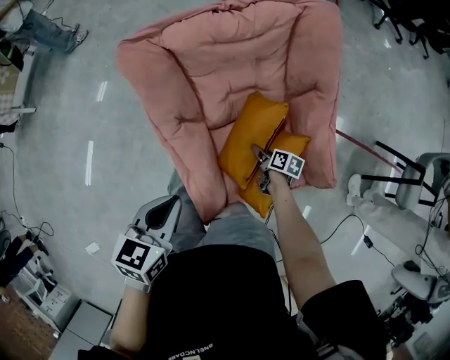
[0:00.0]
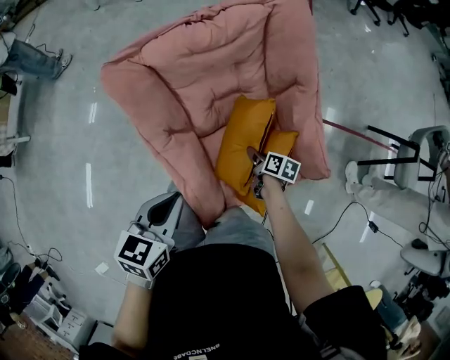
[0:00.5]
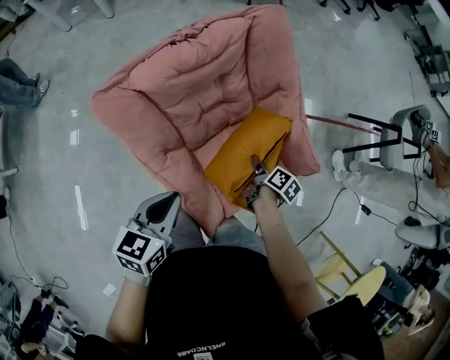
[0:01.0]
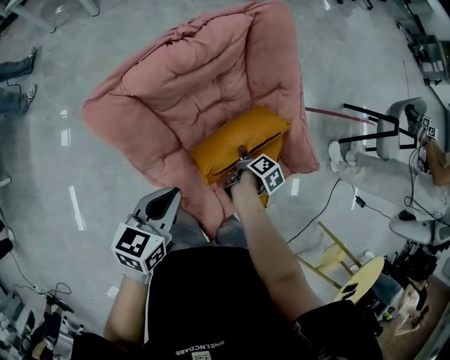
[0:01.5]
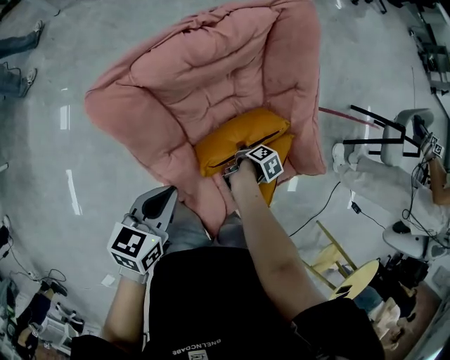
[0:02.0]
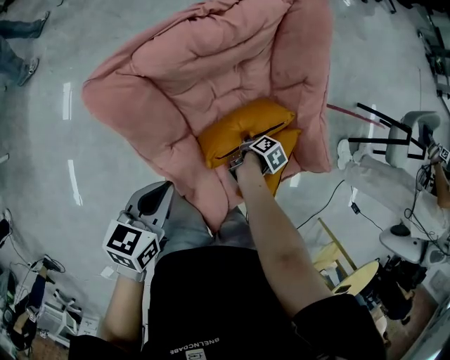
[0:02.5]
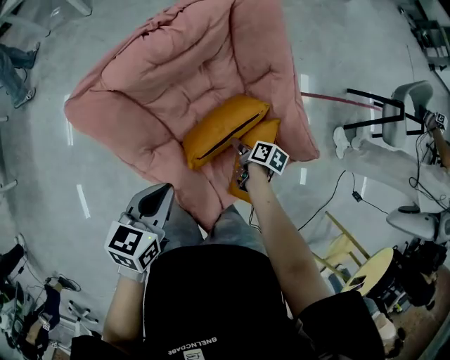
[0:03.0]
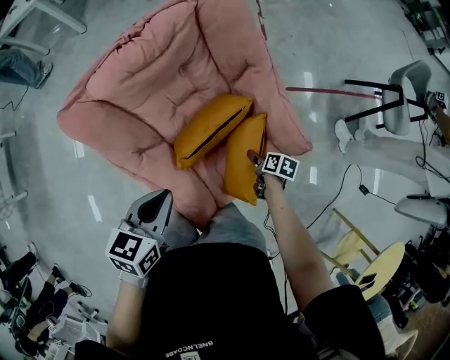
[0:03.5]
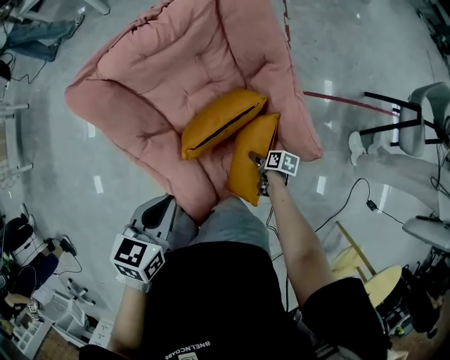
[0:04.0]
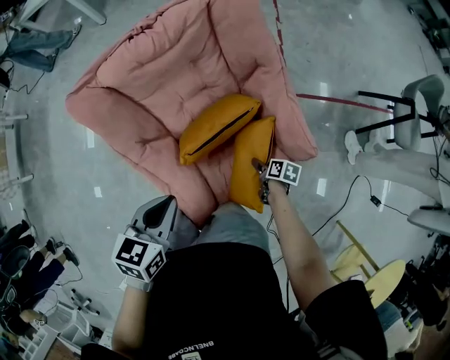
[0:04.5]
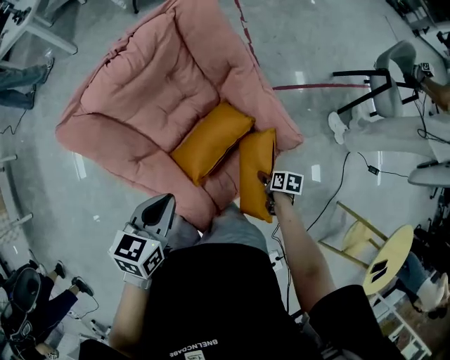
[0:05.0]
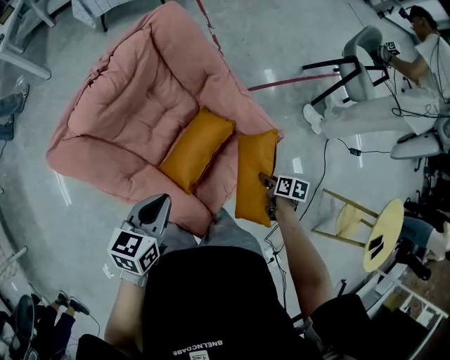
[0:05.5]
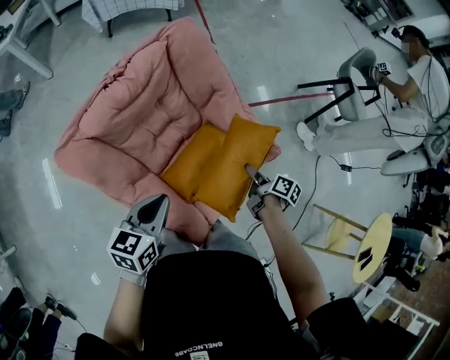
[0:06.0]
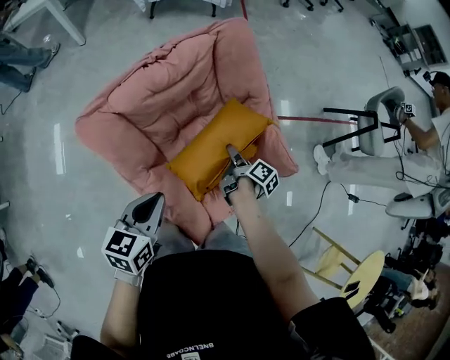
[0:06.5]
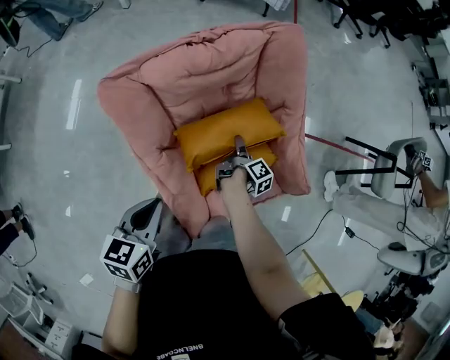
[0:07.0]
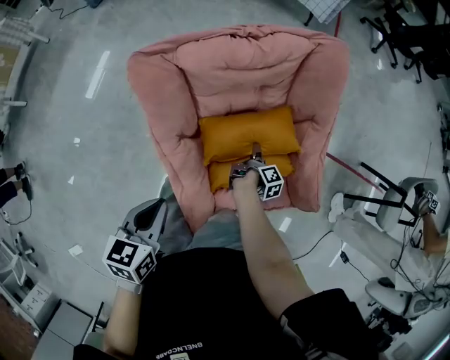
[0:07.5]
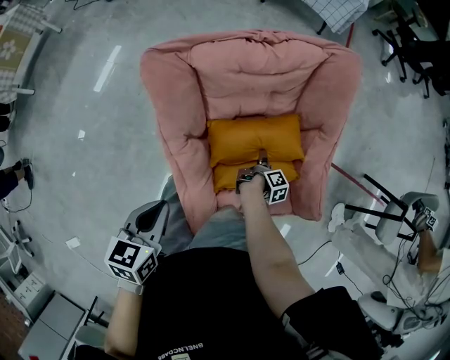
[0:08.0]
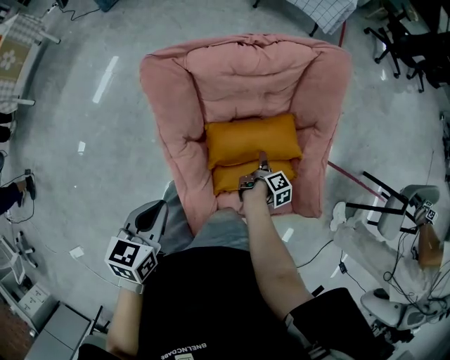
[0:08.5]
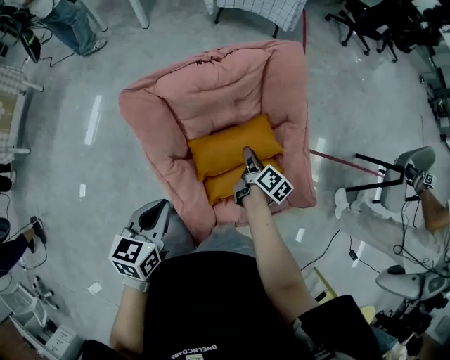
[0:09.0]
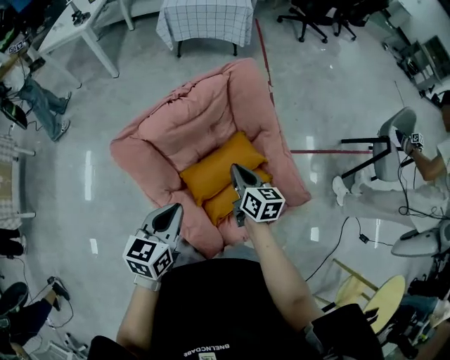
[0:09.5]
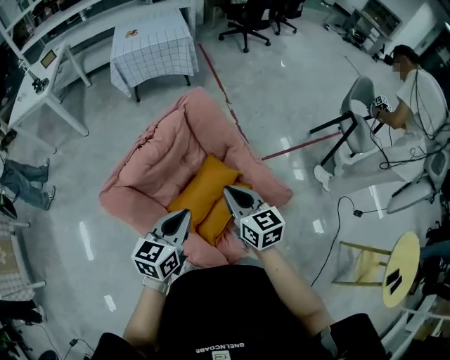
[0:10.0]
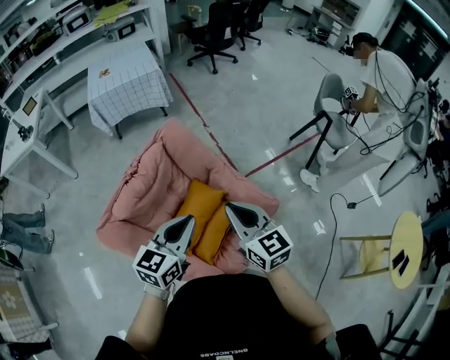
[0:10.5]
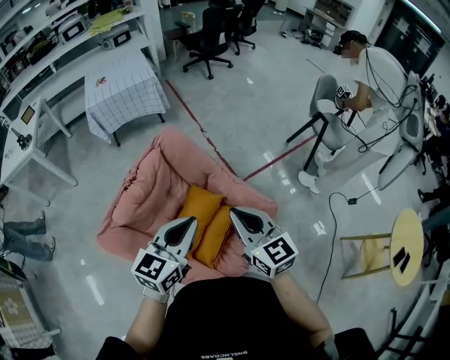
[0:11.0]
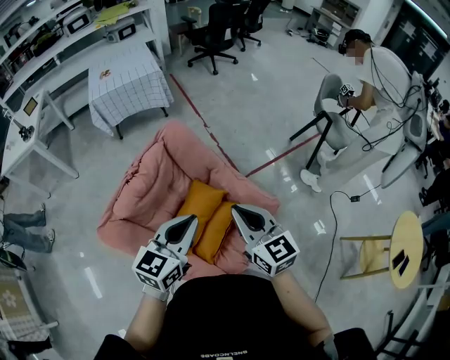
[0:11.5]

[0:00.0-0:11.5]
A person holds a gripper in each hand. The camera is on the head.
0:00.0 to 0:02.0: The right gripper travels upward and back again, some 10 cm each way, twists roughly 50 degrees clockwise, seen from behind, and closes its fingers, while the left gripper ends up about 15 cm from where it was.
0:02.0 to 0:04.0: The right gripper ends up roughly 20 cm from where it was, changes its angle by approximately 40 degrees, and opens up; the left gripper ends up approximately 15 cm from where it was.
0:04.0 to 0:06.0: The left gripper changes place by some 10 cm, and turns by approximately 20 degrees, while the right gripper shifts some 20 cm upward, rotates roughly 40 degrees, and closes its fingers.
0:06.0 to 0:07.5: The right gripper travels to the left, downward and forward by some 25 cm. The left gripper moves backward and to the left, some 15 cm, and swivels roughly 40 degrees.
0:07.5 to 0:09.5: The left gripper is displaced forward and upward by about 10 cm, and rotates approximately 30 degrees. Meanwhile the right gripper moves upward, roughly 25 cm, rotates around the line of its fingers by about 60 degrees, counterclockwise from behind, and closes.
0:09.5 to 0:11.5: The right gripper moves upward and to the right, some 25 cm, and swivels some 30 degrees, while the left gripper heads upward, to the right and forward, covering approximately 20 cm, and changes its angle by approximately 40 degrees.

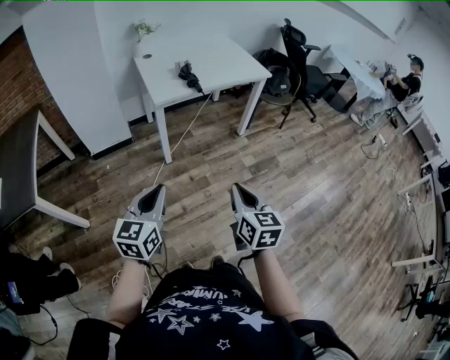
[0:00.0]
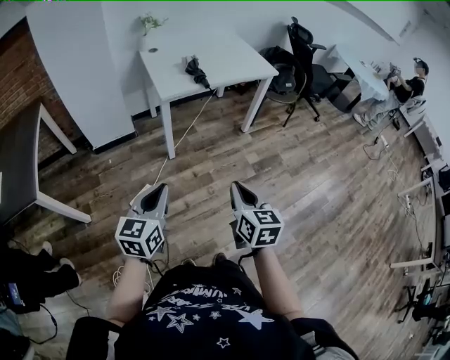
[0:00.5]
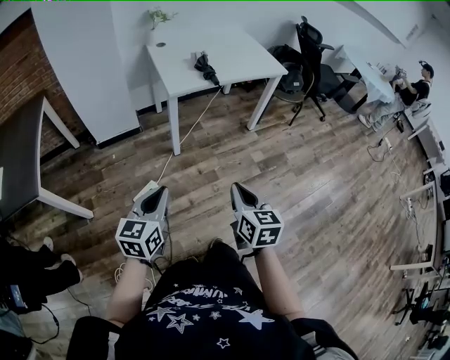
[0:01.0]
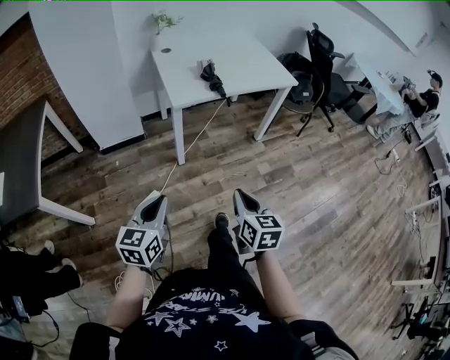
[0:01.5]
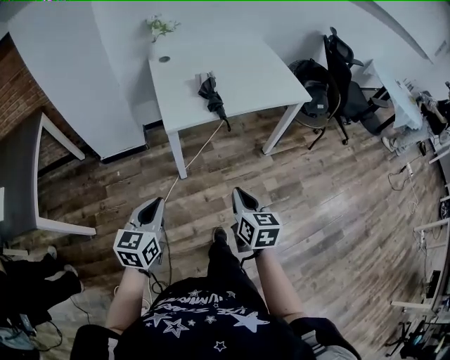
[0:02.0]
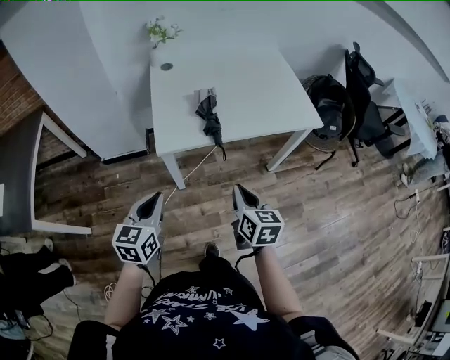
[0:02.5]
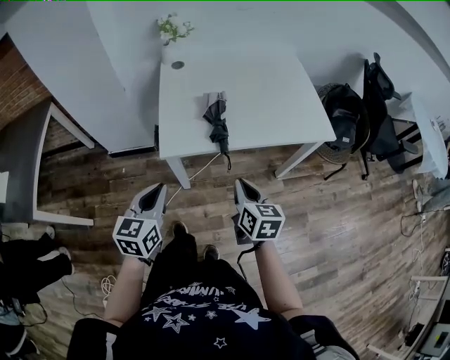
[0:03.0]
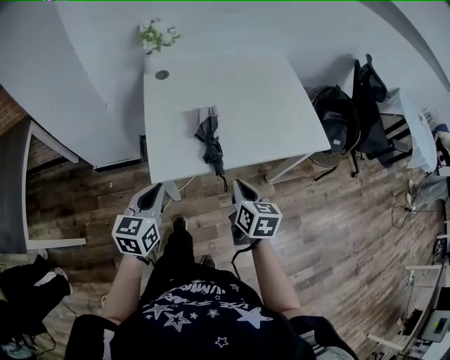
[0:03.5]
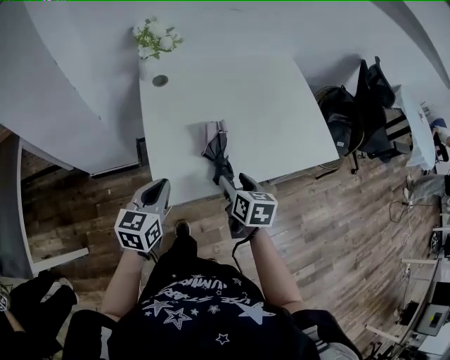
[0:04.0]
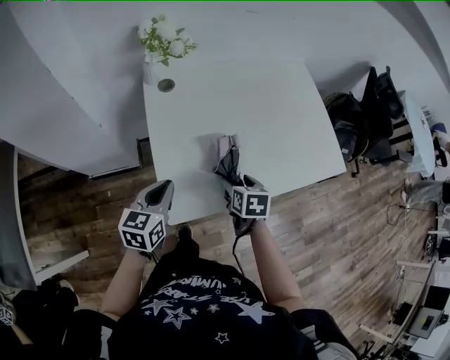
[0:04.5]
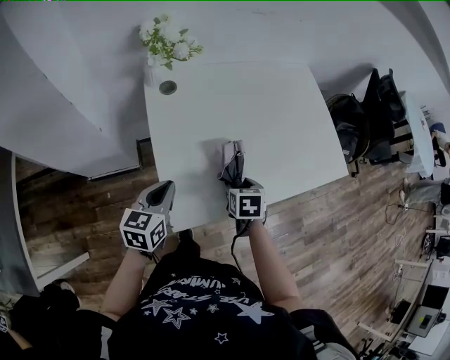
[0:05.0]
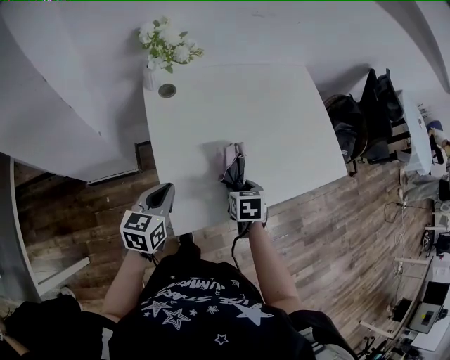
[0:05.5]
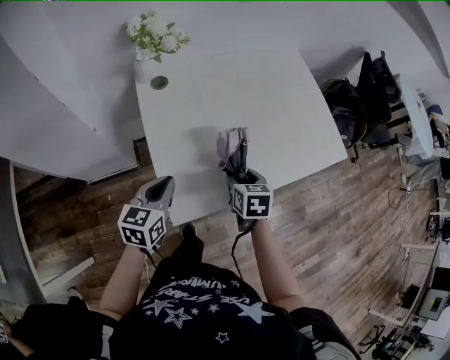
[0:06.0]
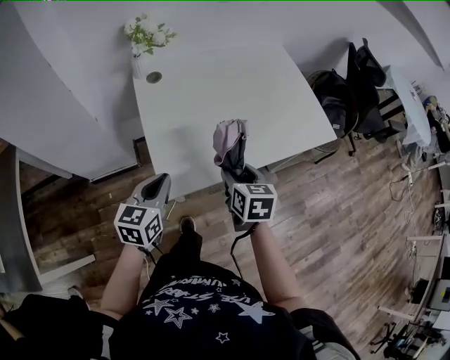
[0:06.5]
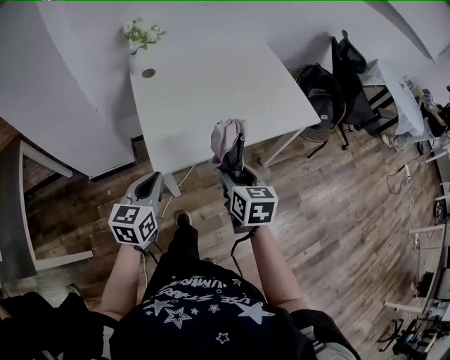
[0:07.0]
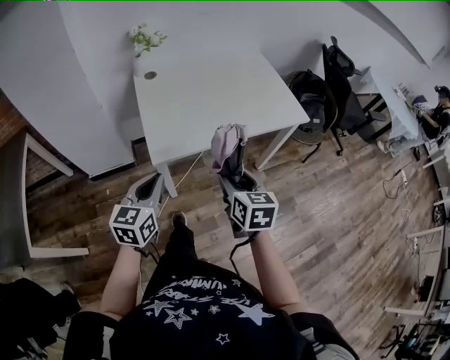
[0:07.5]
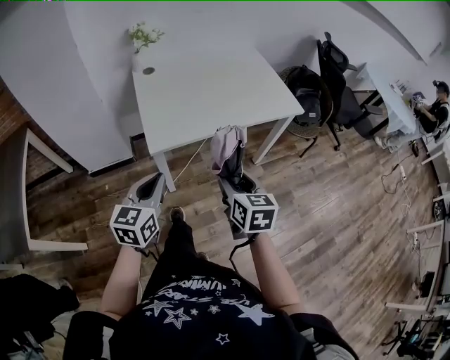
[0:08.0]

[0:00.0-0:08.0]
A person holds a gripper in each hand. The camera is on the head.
0:00.0 to 0:02.0: The grippers both shift forward by approximately 25 cm.
0:02.0 to 0:04.0: The grippers both shift forward by about 40 cm. The right gripper opens its fingers.
0:04.0 to 0:06.0: Both grippers travel together forward, about 5 cm.
0:06.0 to 0:08.0: The left gripper shifts some 30 cm backward. The right gripper heads backward and upward, covering some 35 cm, and swivels about 20 degrees.

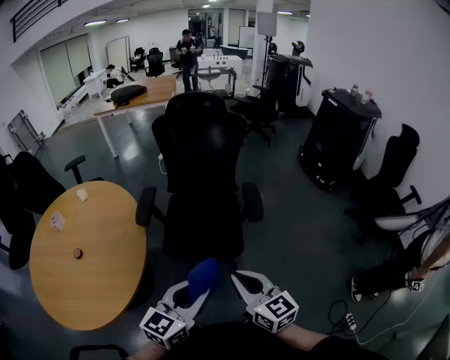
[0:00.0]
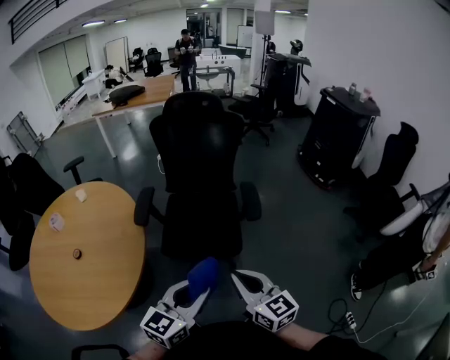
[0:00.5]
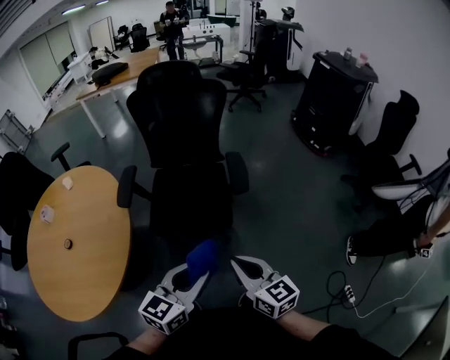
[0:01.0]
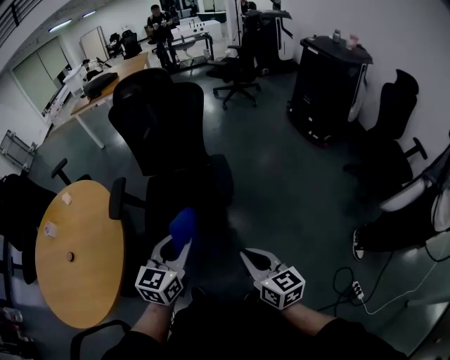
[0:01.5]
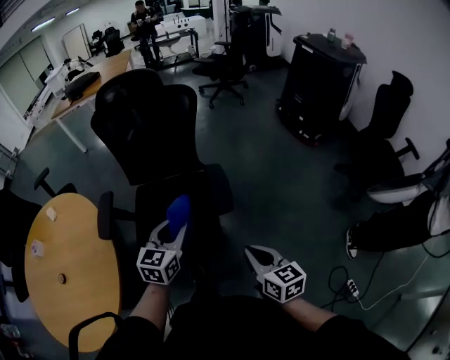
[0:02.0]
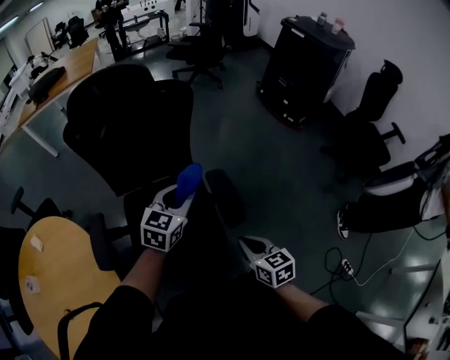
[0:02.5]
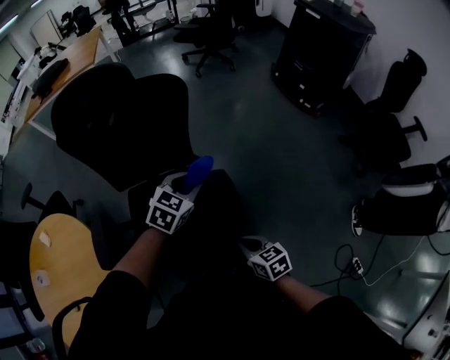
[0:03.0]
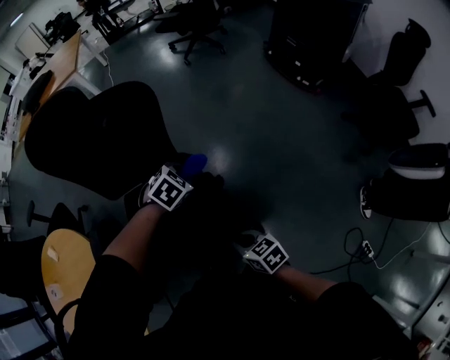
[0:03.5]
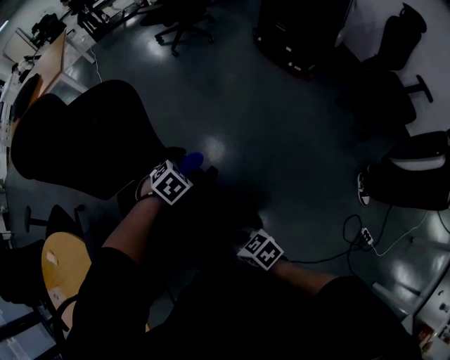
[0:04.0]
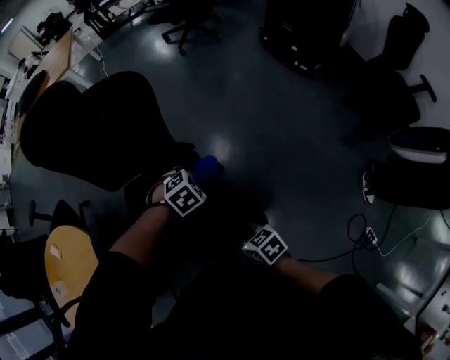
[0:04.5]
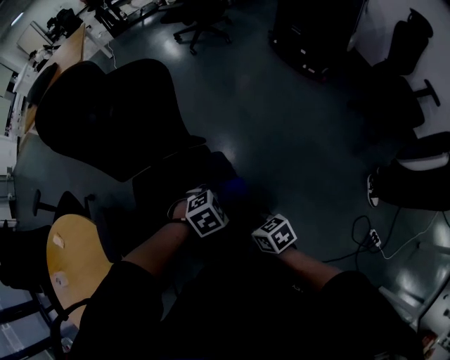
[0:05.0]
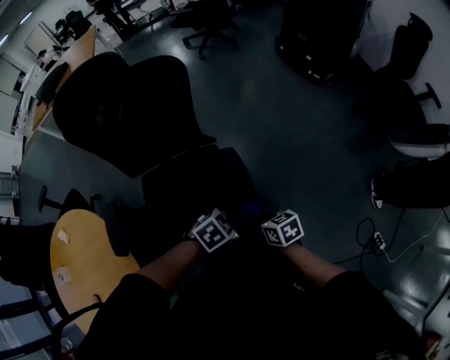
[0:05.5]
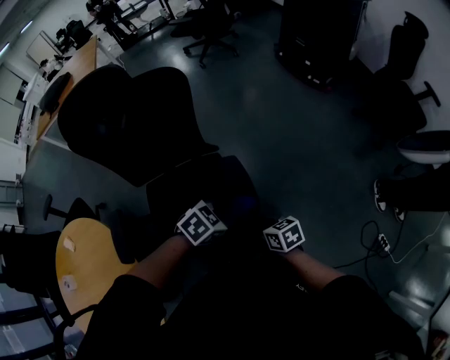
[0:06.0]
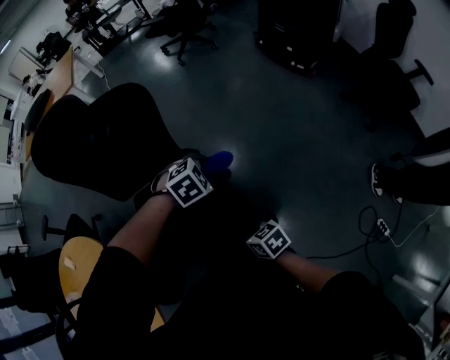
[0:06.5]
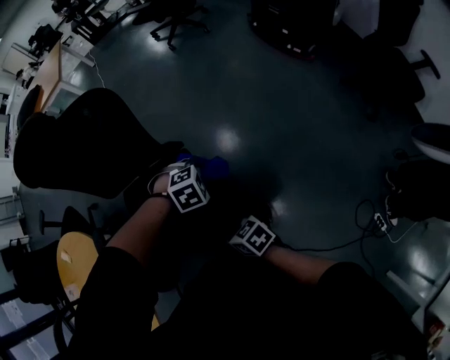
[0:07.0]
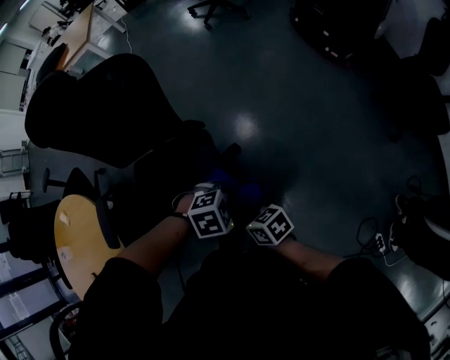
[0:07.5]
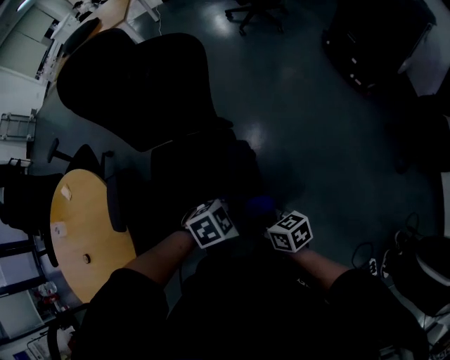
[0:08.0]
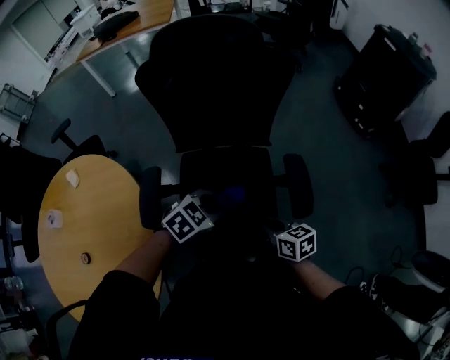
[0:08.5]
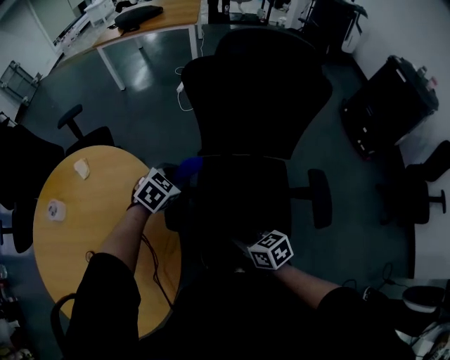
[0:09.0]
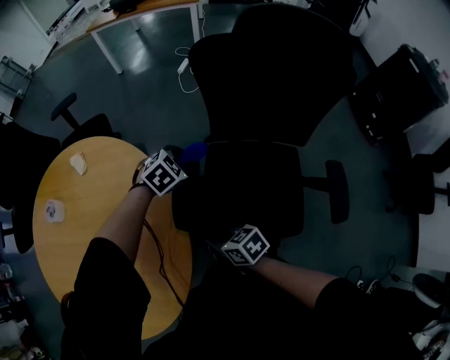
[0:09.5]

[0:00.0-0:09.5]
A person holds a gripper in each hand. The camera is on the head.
0:00.0 to 0:02.0: The right gripper is displaced to the right, forward and downward by roughly 25 cm, and swivels roughly 20 degrees. The left gripper goes some 30 cm forward.
0:02.0 to 0:04.0: The right gripper heads downward and forward, covering some 25 cm, and swivels approximately 30 degrees. Meanwhile the left gripper is displaced forward, downward and to the right by approximately 40 cm, and tips its fingers downward by about 50 degrees.
0:04.0 to 0:05.5: The left gripper changes place by approximately 25 cm, and changes its angle by approximately 30 degrees.
0:05.5 to 0:07.5: The left gripper rotates about 20 degrees; the right gripper turns by approximately 20 degrees.
0:07.5 to 0:09.5: The pair of grippers is taken approximately 60 cm. The left gripper swivels about 40 degrees, while the right gripper changes its angle by approximately 20 degrees.
